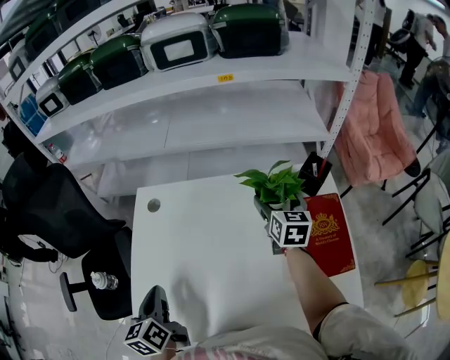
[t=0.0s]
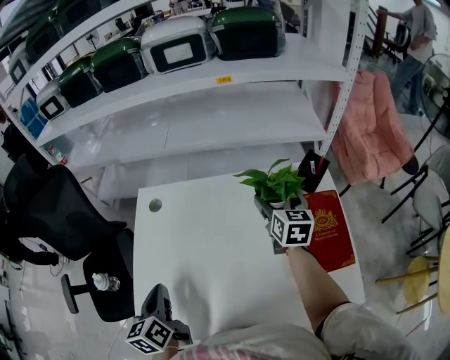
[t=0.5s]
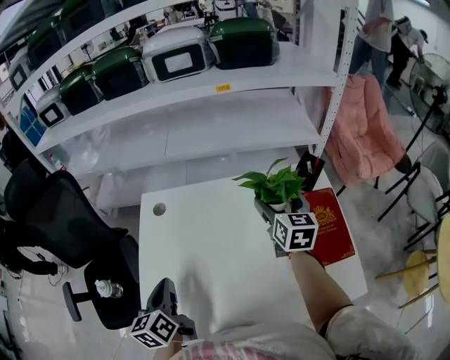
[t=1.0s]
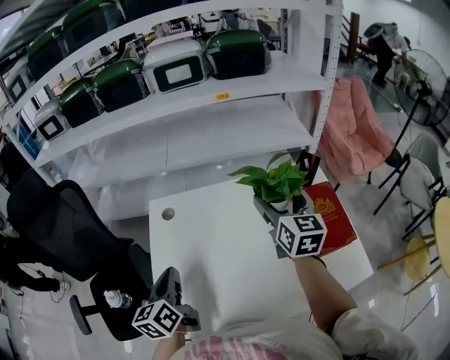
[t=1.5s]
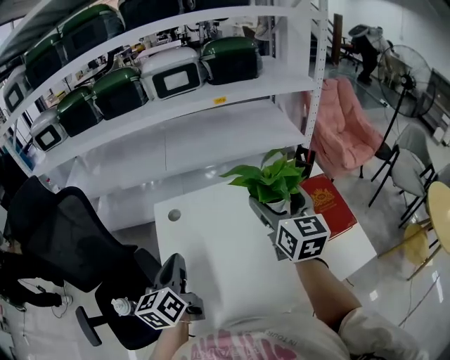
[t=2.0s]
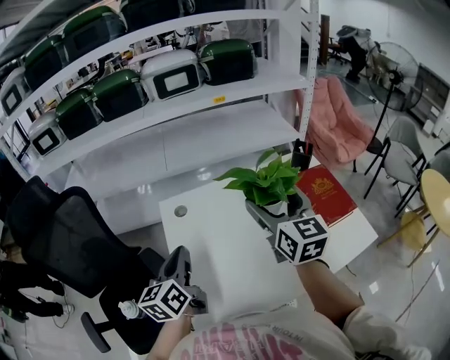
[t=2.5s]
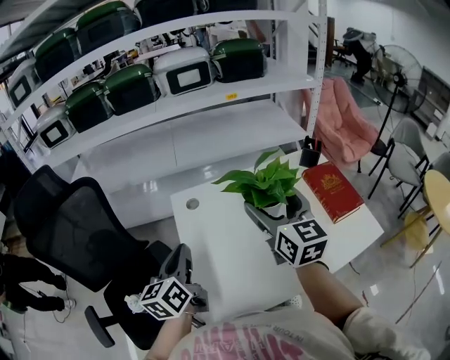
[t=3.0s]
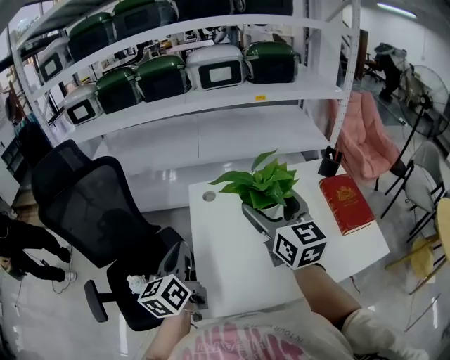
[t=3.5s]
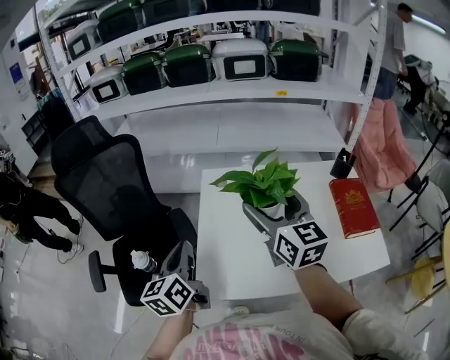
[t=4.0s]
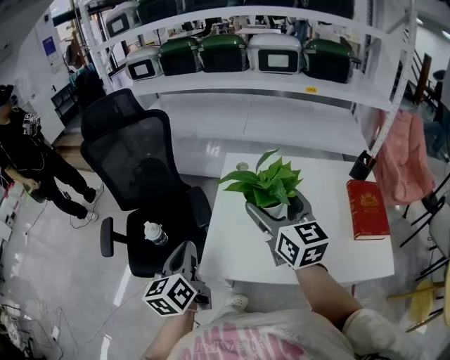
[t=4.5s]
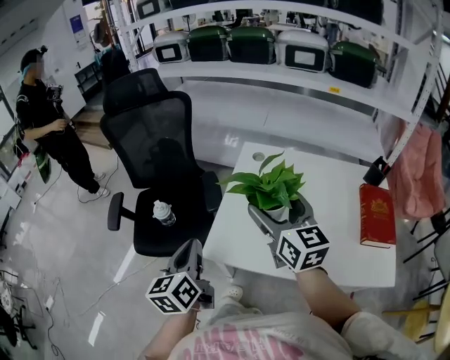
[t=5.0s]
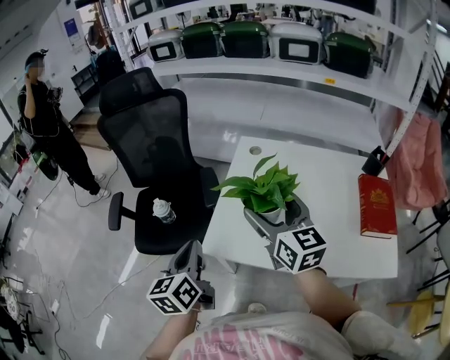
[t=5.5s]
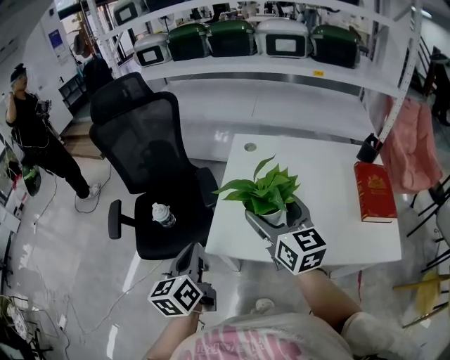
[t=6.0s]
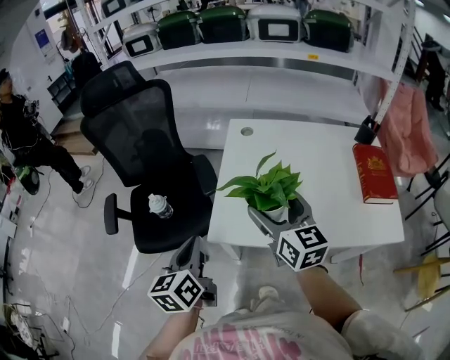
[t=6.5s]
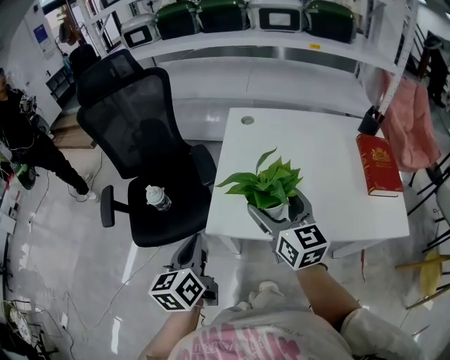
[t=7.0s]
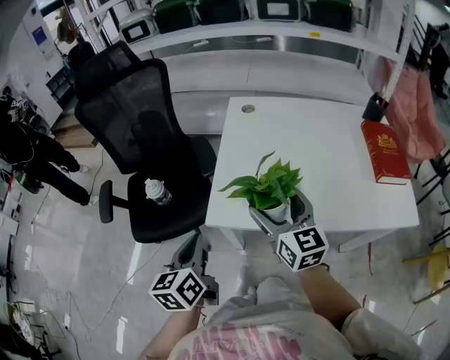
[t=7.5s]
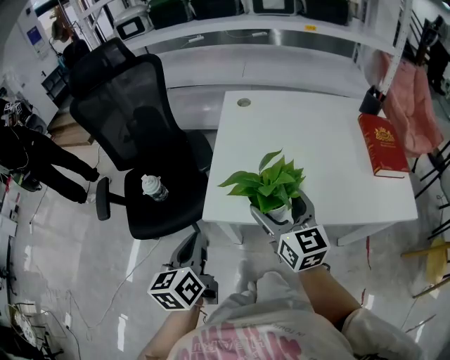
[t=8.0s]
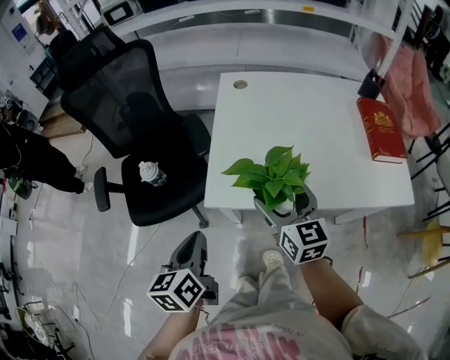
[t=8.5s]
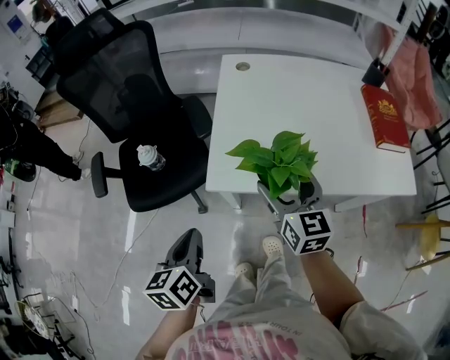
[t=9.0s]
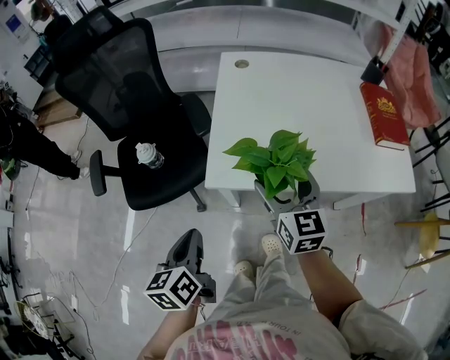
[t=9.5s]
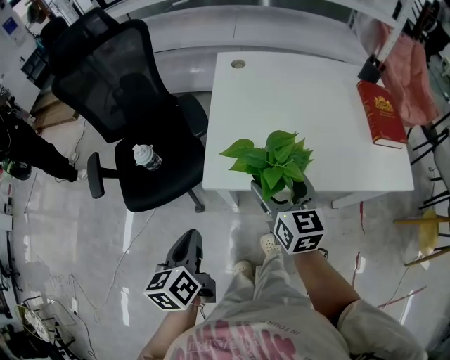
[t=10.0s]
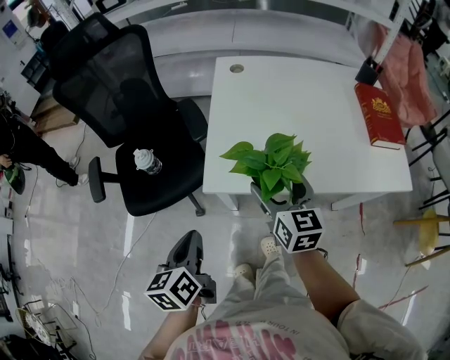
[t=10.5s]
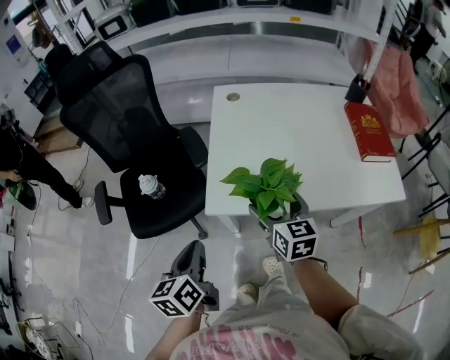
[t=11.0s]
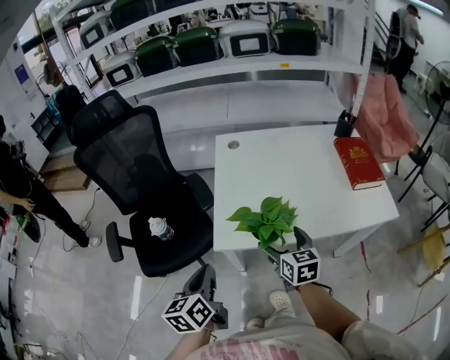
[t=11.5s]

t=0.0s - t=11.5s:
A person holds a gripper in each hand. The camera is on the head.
t=0.0s - t=2.0s: The left gripper heads upward and to the left, covering roughly 10 cm, and changes its angle by roughly 30 degrees, while the right gripper travels upward, backward and to the left by about 30 cm.
t=2.0s - t=4.0s: The right gripper moves to the left and backward, some 20 cm, and turns by approximately 20 degrees. Meanwhile the left gripper heads backward and to the left, covering approximately 20 cm.
t=4.0s - t=6.0s: The left gripper is displaced backward by approximately 15 cm; the right gripper goes some 15 cm backward, to the left and downward.
t=6.0s - t=7.5s: Both grippers move downward, some 10 cm.
t=7.5s - t=9.5s: The left gripper is displaced backward by about 5 cm.
t=9.5s - t=11.5s: The left gripper is displaced upward by about 5 cm.

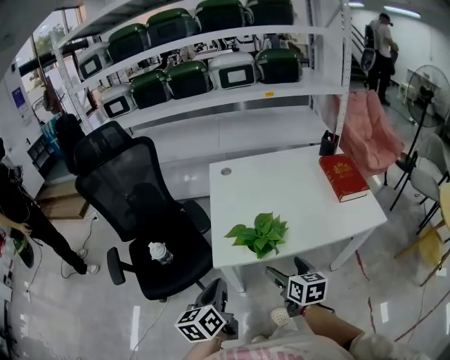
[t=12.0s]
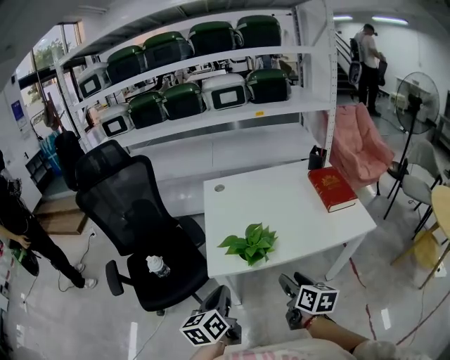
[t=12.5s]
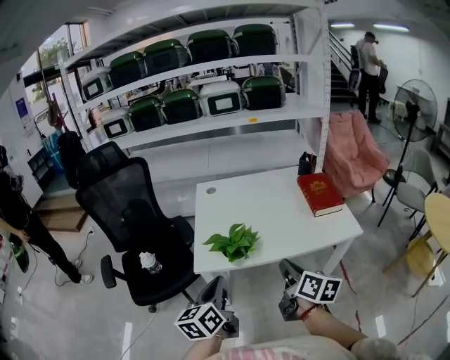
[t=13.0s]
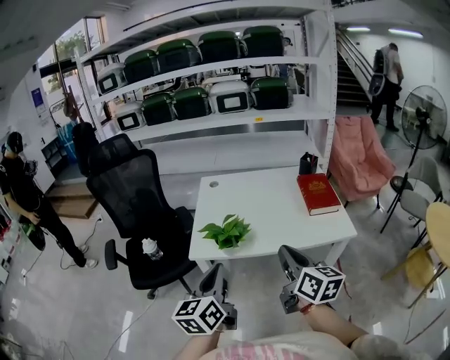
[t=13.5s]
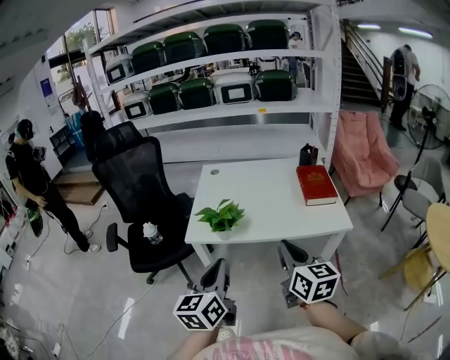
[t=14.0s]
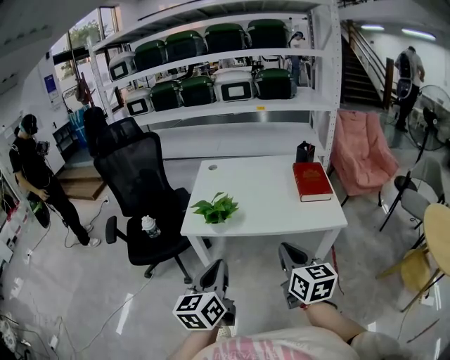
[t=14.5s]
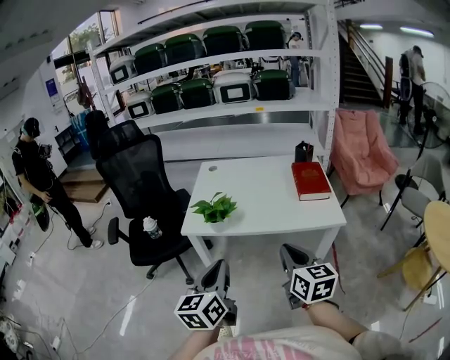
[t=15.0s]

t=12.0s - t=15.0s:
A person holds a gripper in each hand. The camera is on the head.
t=12.0s - t=13.5s: The left gripper moves to the right, upward and backward, roughly 25 cm. The right gripper moves upward, to the right and backward, some 25 cm, changes its angle by approximately 20 degrees, and closes.
t=13.5s - t=15.0s: The grippers both shift backward and to the right by about 15 cm.

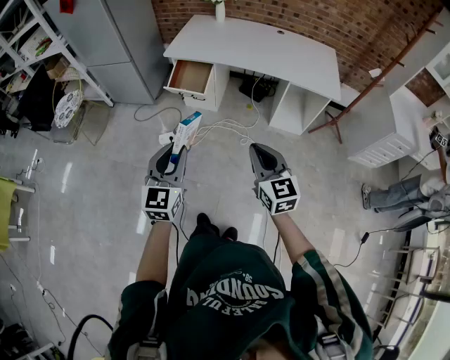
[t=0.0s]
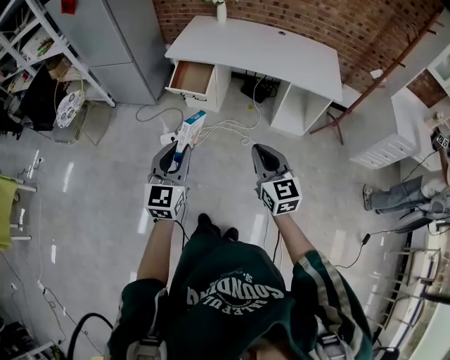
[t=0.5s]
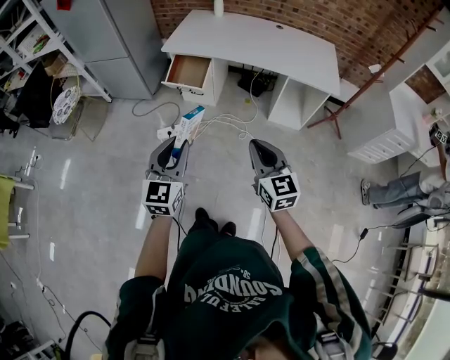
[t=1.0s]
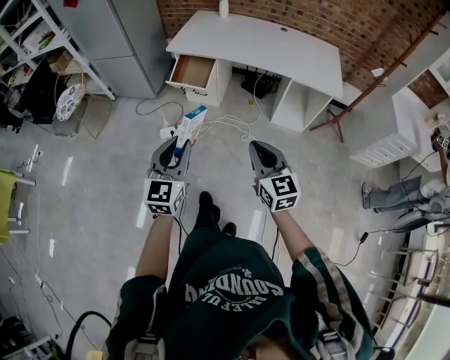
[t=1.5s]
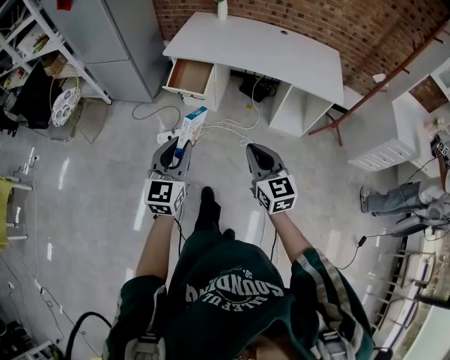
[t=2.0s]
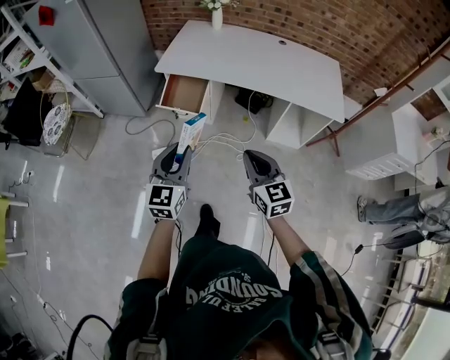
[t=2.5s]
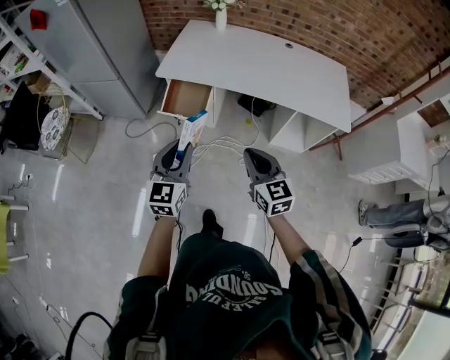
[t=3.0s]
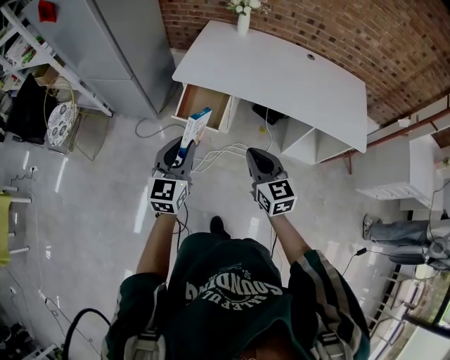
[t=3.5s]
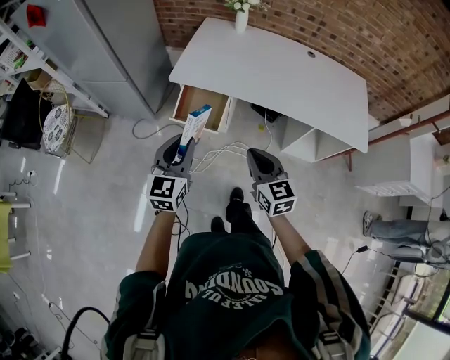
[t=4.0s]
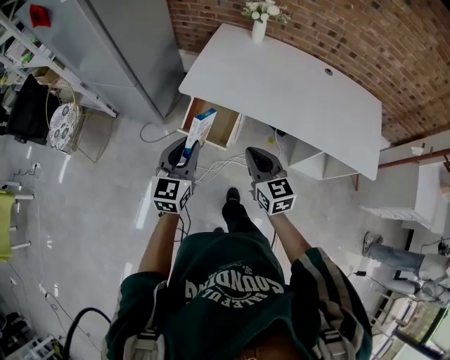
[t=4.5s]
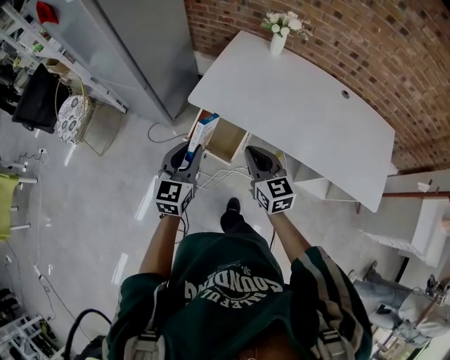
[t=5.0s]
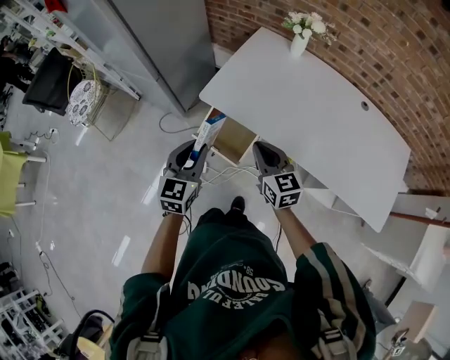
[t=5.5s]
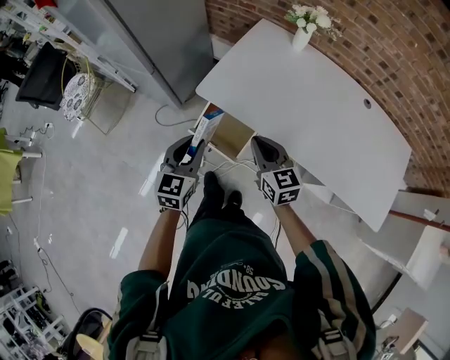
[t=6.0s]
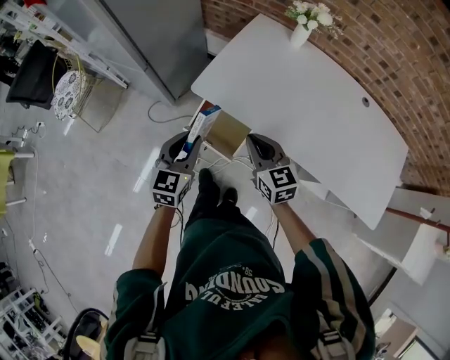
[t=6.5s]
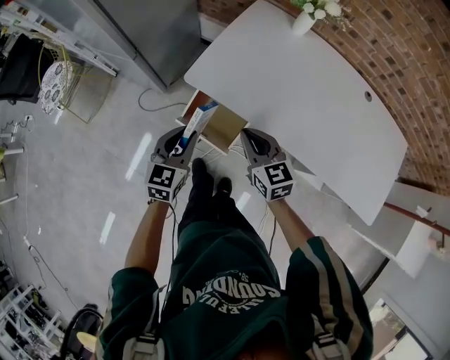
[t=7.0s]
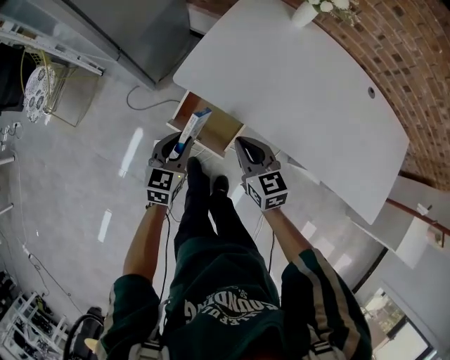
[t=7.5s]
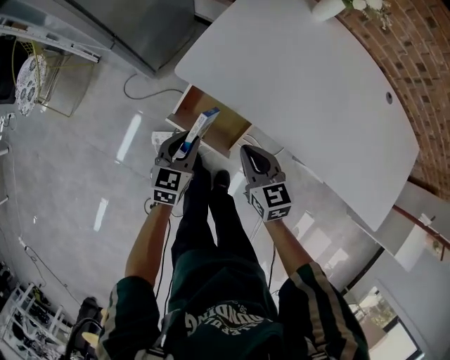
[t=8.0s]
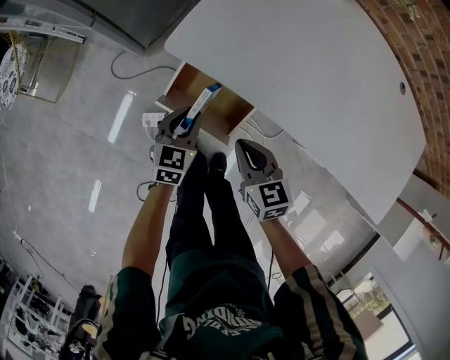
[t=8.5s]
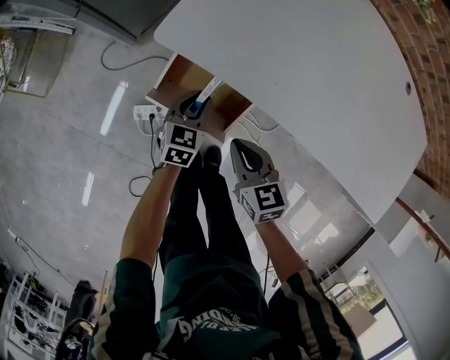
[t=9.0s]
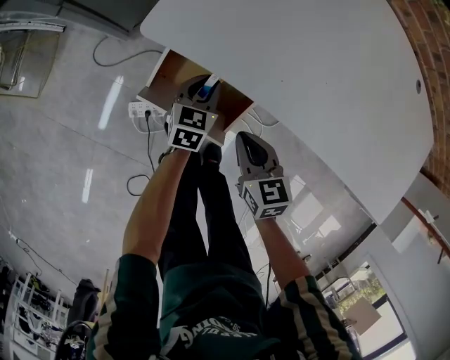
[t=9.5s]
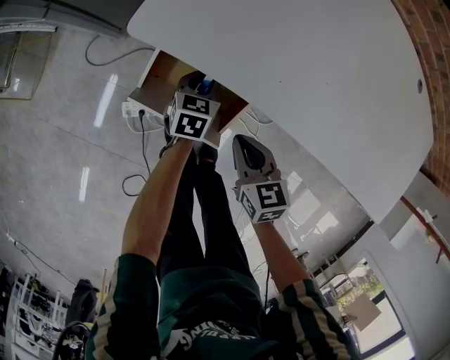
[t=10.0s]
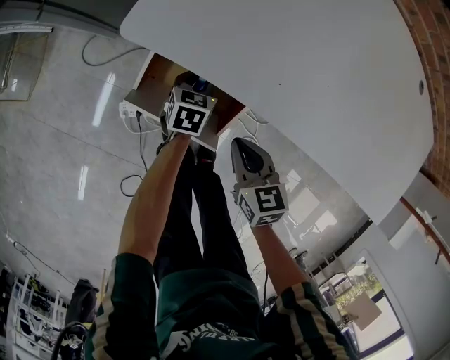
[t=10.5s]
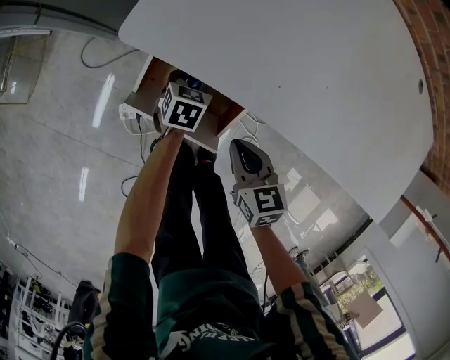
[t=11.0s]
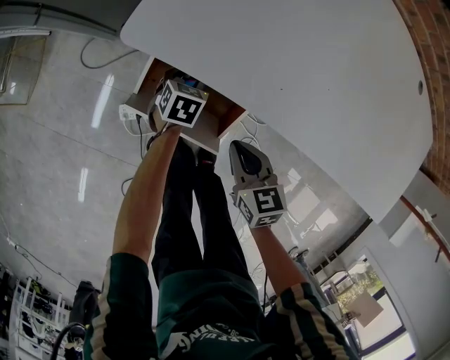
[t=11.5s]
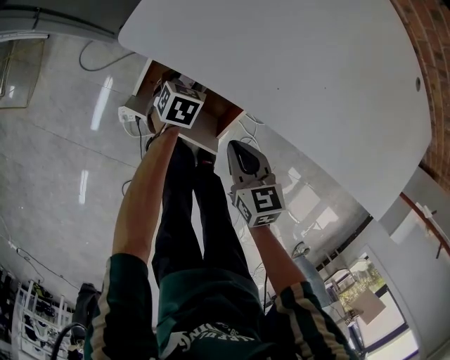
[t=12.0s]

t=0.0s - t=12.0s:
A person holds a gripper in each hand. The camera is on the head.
t=0.0s - t=2.0s: The grippers make only small movements.
t=2.0s - t=4.0s: The two grippers go about 30 cm forward.
t=4.0s - t=6.0s: The two grippers go about 25 cm forward.
t=6.0s - t=8.0s: Both grippers travel together downward, approximately 20 cm.
t=8.0s - t=10.0s: The right gripper is displaced downward by roughly 15 cm; the left gripper heads downward, to the right and forward, covering approximately 25 cm.
t=10.0s - t=12.0s: The left gripper shifts by roughly 5 cm, and opens up.
